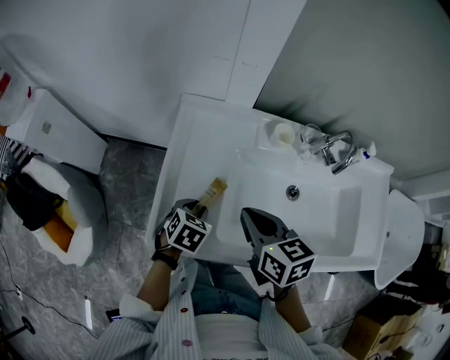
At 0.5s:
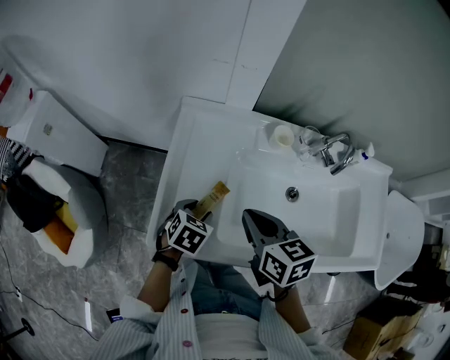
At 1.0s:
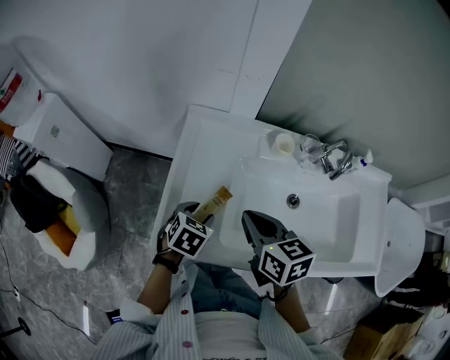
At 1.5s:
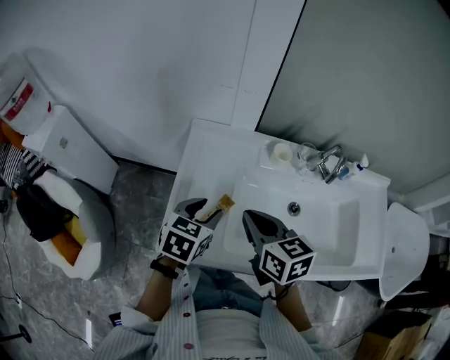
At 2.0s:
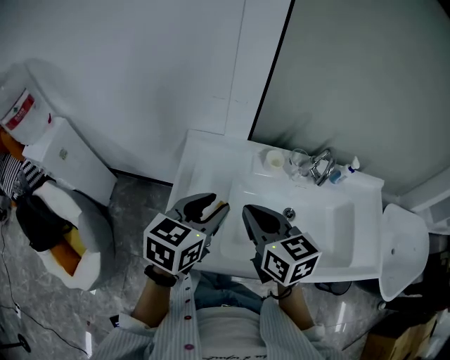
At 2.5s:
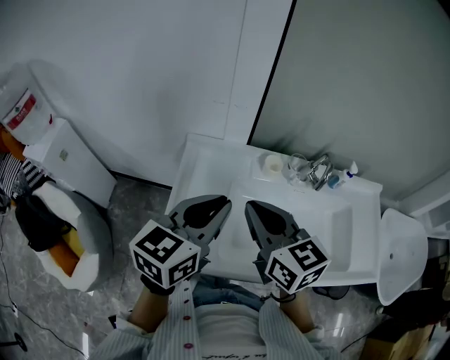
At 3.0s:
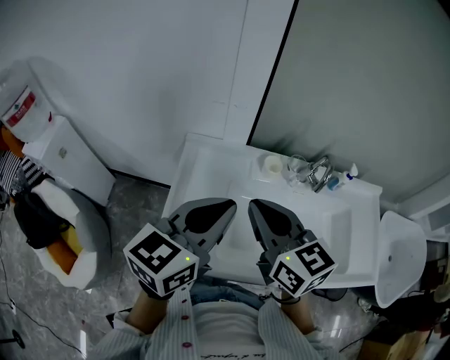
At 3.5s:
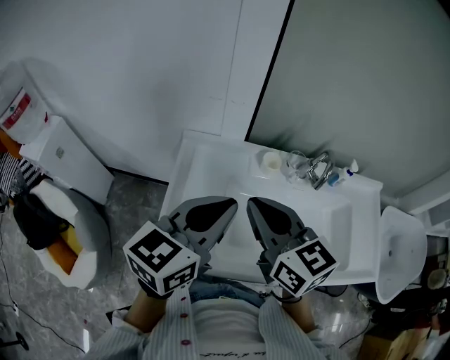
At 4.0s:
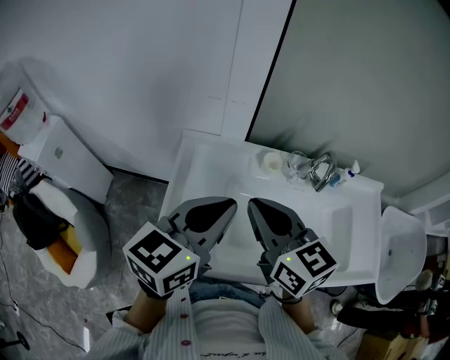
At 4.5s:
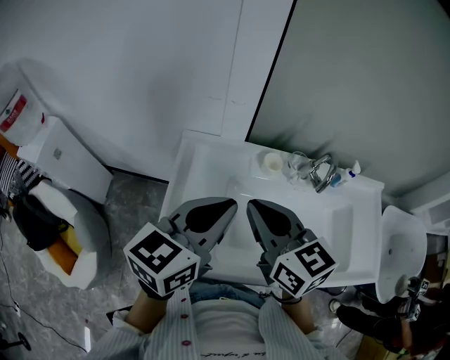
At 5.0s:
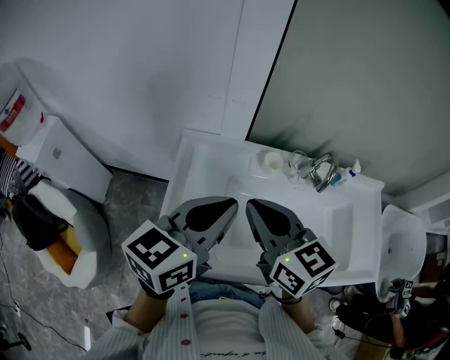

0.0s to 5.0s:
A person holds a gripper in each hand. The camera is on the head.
0.0s to 2.5s: The right gripper moves upward, some 15 cm, and swivels some 20 degrees. Meanwhile the left gripper heads upward, covering approximately 30 cm, points its fingers about 50 degrees further upward, and opens and closes again.
2.5s to 5.0s: The grippers move only a little.

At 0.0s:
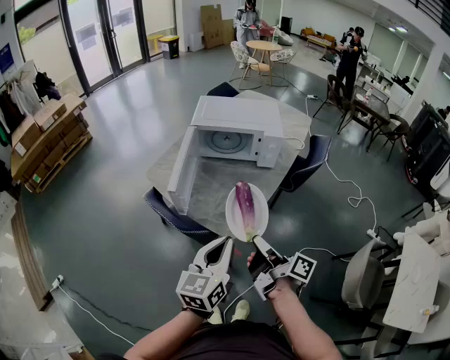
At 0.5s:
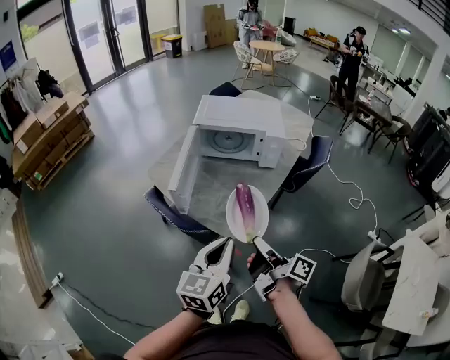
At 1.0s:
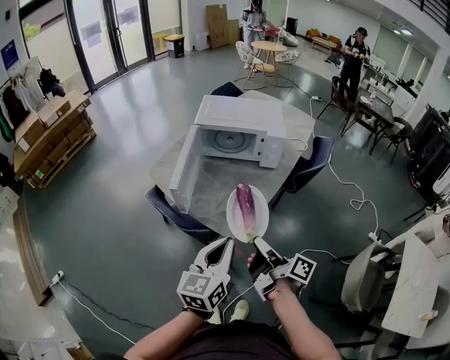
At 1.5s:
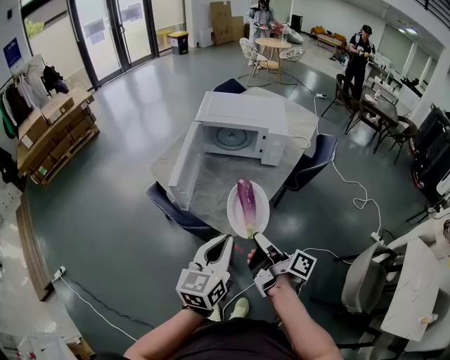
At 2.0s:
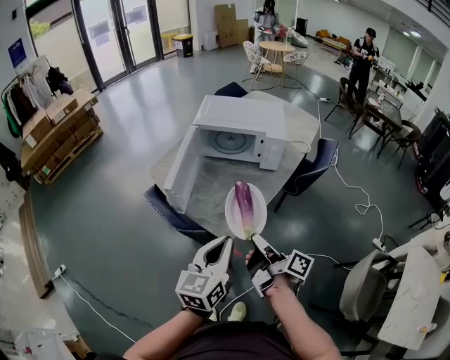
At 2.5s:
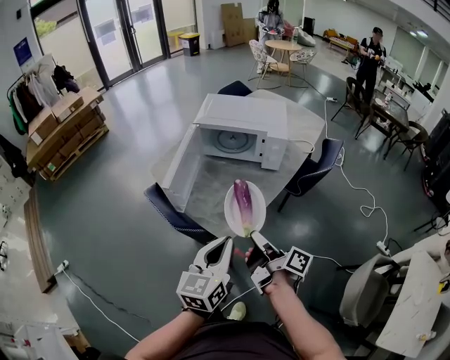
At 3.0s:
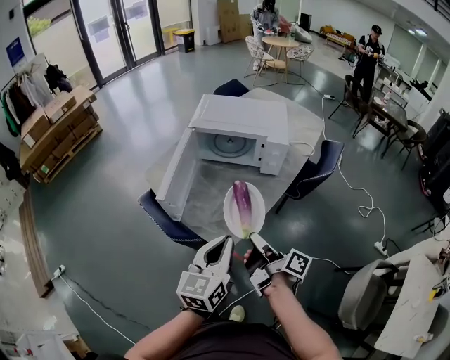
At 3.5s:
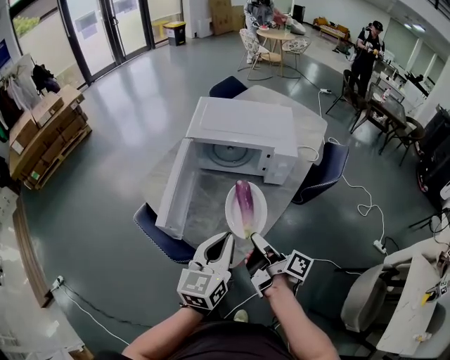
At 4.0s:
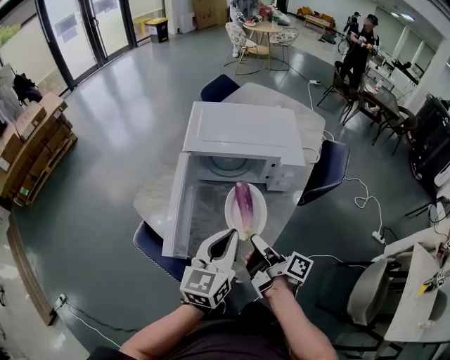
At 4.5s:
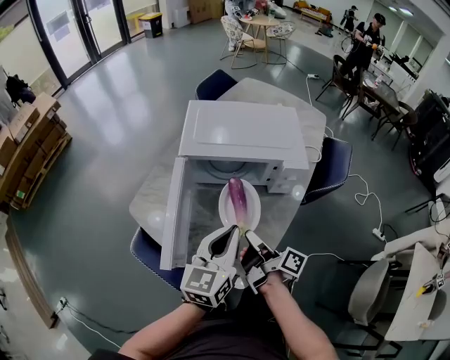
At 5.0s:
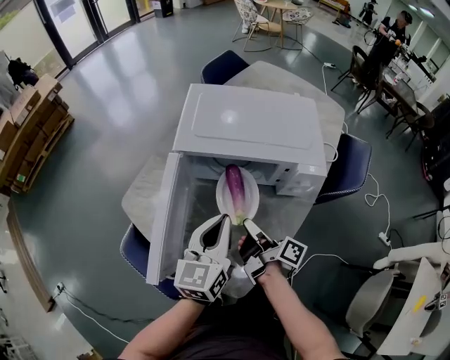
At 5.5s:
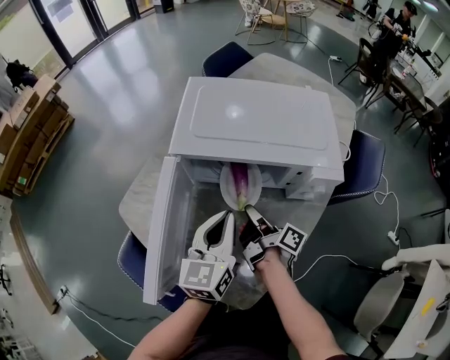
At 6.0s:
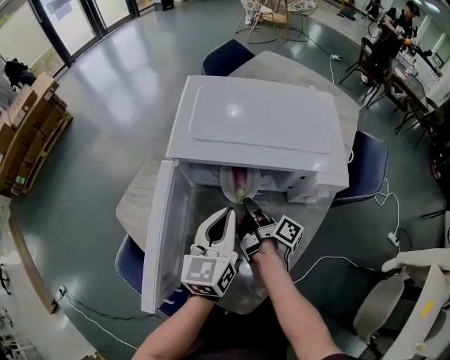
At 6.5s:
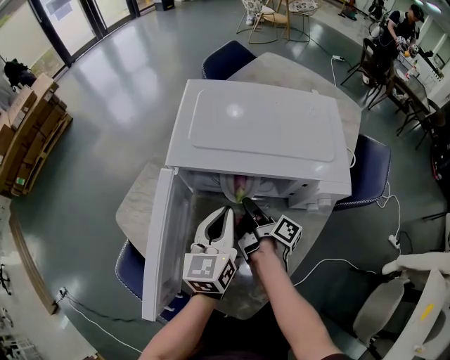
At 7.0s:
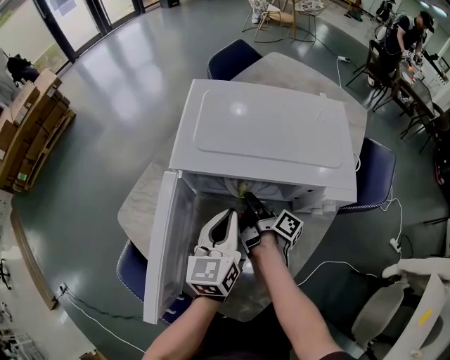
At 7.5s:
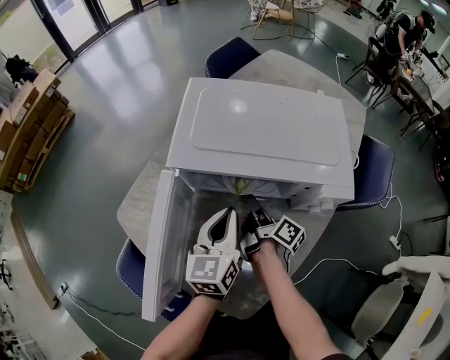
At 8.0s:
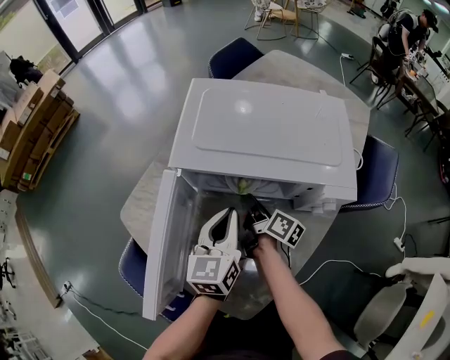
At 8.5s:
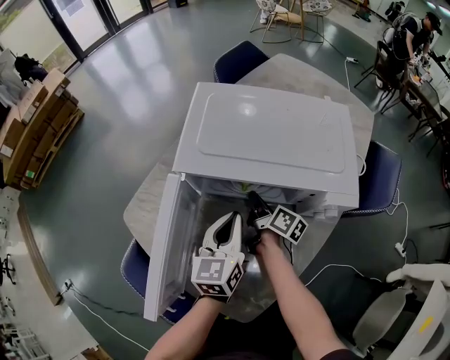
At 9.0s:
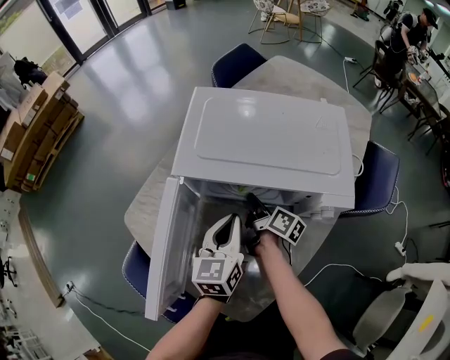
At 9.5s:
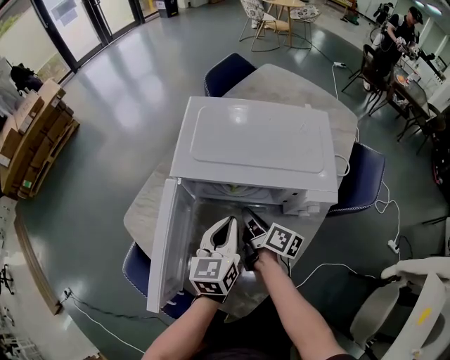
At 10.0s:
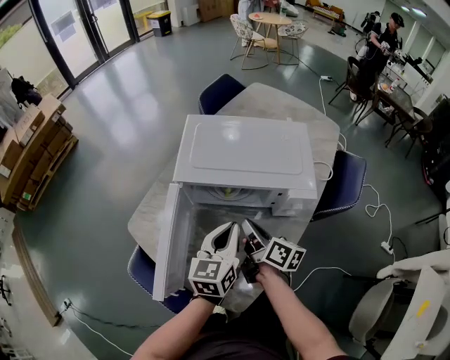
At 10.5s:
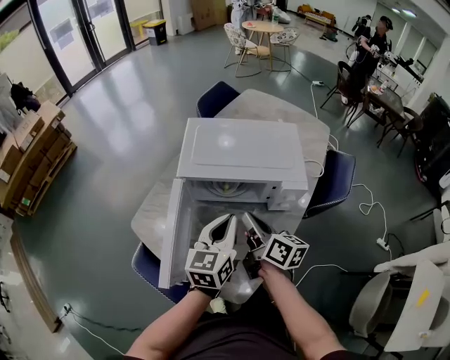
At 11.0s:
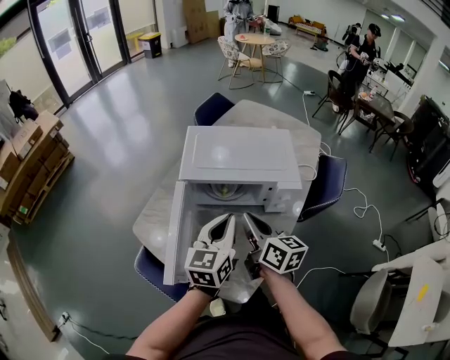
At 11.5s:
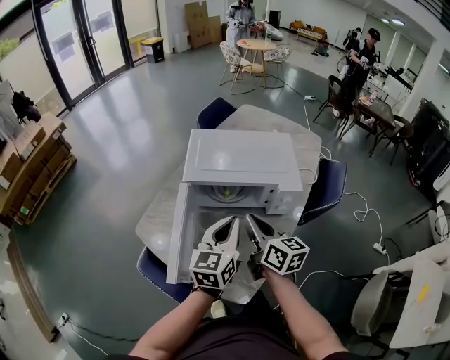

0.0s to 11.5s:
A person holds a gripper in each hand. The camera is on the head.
2.0s to 4.0s: The left gripper shifts by roughly 25 cm.
4.0s to 6.0s: The left gripper shifts by about 25 cm.
9.5s to 11.5s: The left gripper heads upward, covering roughly 15 cm.

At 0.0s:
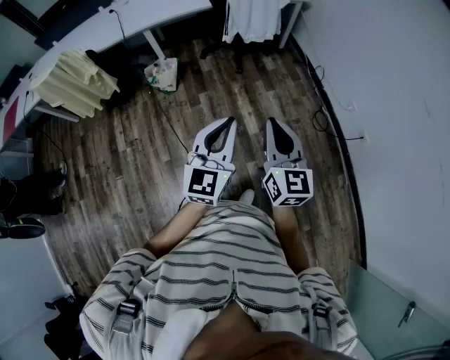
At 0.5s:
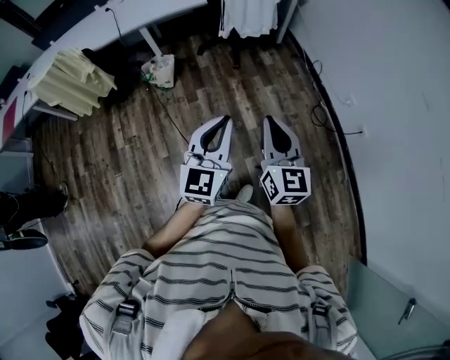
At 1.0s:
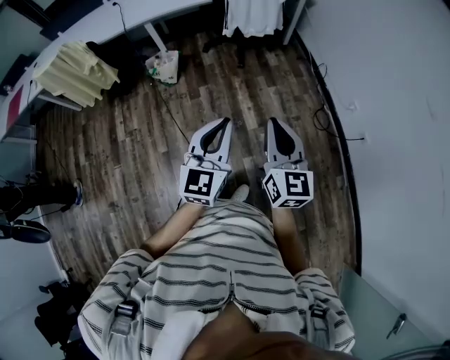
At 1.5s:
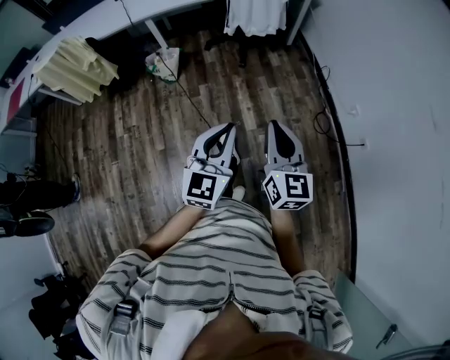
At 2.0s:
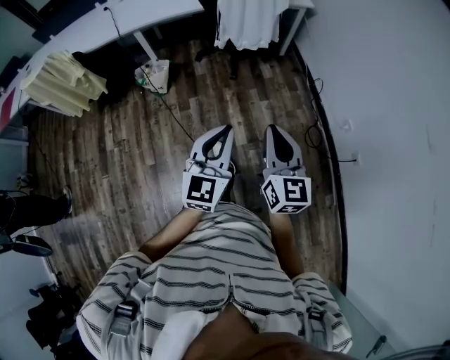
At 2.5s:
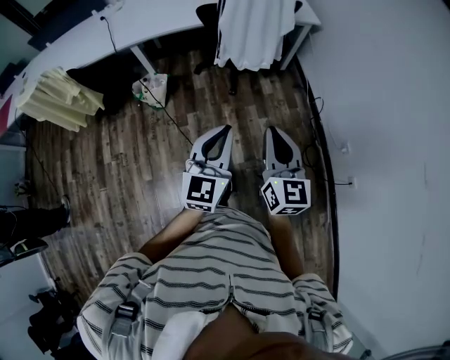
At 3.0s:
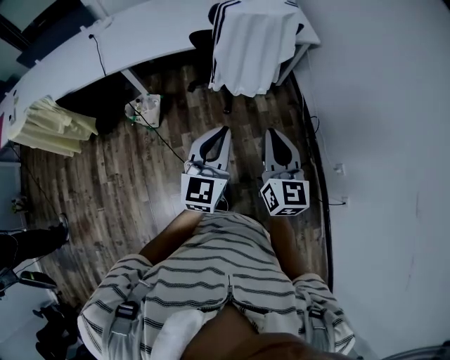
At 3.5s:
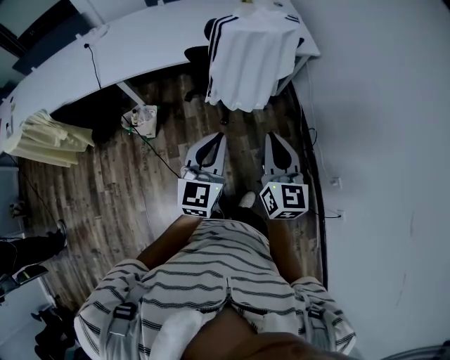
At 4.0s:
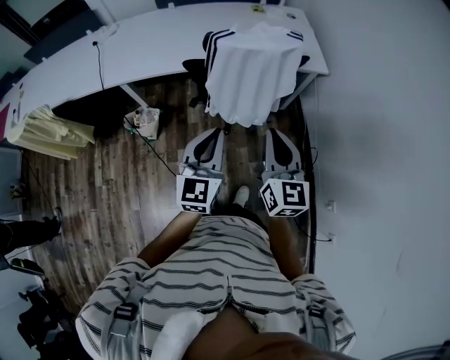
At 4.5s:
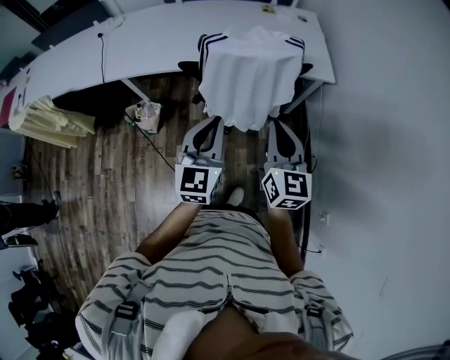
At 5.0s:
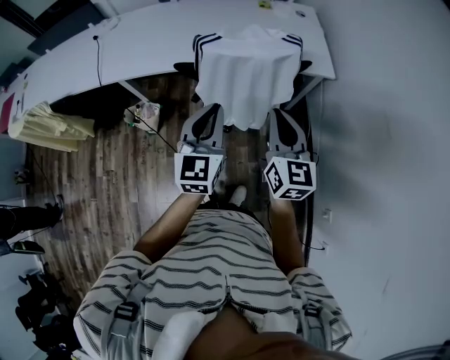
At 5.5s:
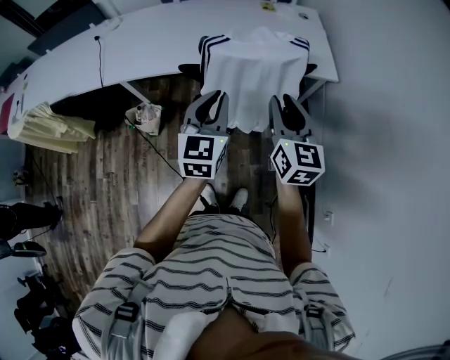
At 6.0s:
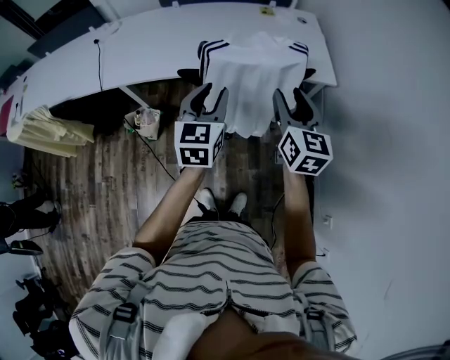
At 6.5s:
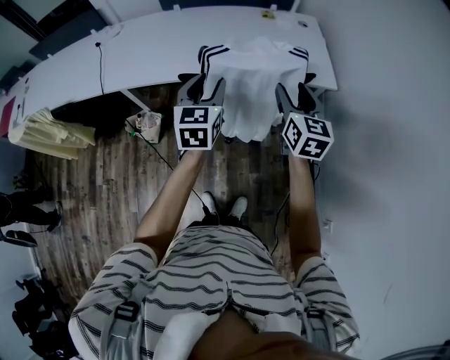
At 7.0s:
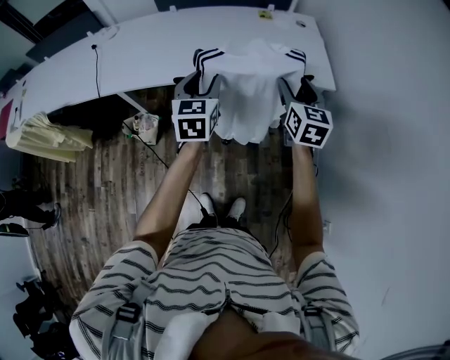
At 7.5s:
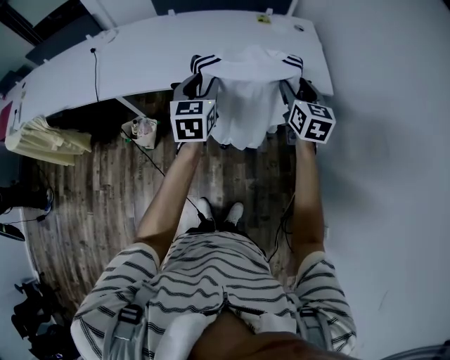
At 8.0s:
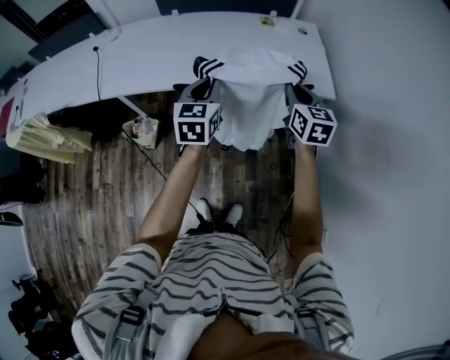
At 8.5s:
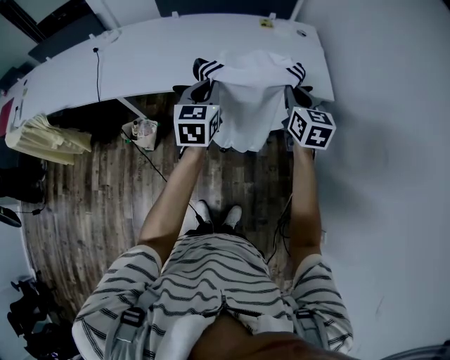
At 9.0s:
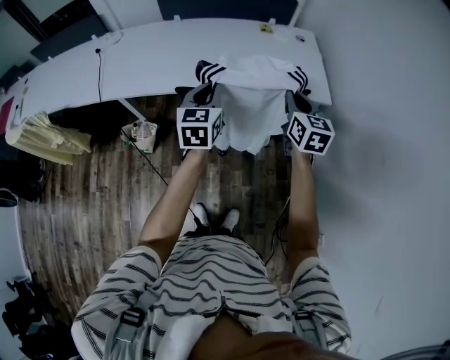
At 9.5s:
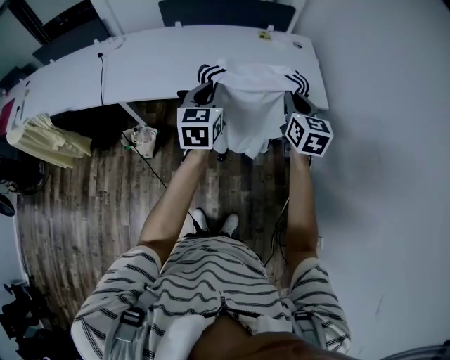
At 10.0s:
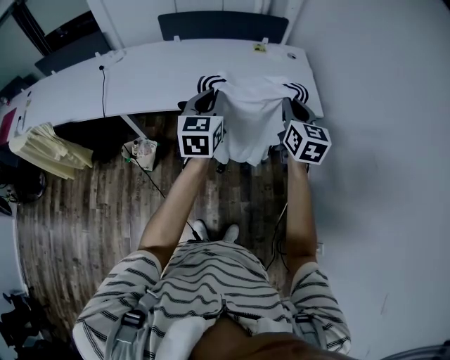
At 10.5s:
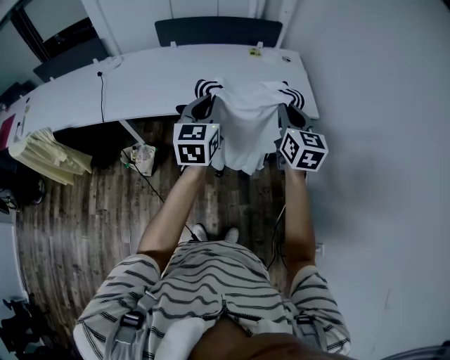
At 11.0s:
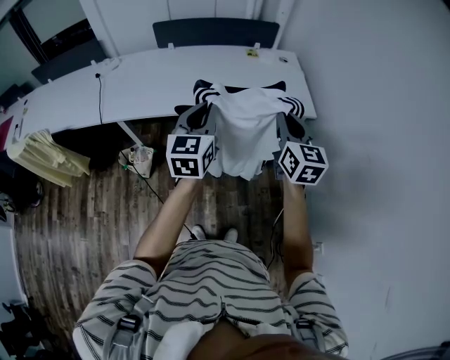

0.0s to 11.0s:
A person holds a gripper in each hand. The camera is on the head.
0.0s to 2.0s: The left gripper goes some 15 cm forward, to the right and downward, while the right gripper is displaced forward and to the right by about 15 cm.
2.0s to 3.5s: Both grippers move forward, approximately 40 cm.
3.5s to 5.5s: Both grippers move forward, about 25 cm. The right gripper opens its fingers.
5.5s to 7.5s: The right gripper travels forward and to the right by roughly 15 cm, and opens its fingers, while the left gripper moves forward, roughly 15 cm, and opens up.
7.5s to 9.0s: The right gripper closes its fingers; the left gripper closes.
9.0s to 11.0s: The left gripper moves upward and backward, about 10 cm. The right gripper moves backward and upward, some 15 cm.
